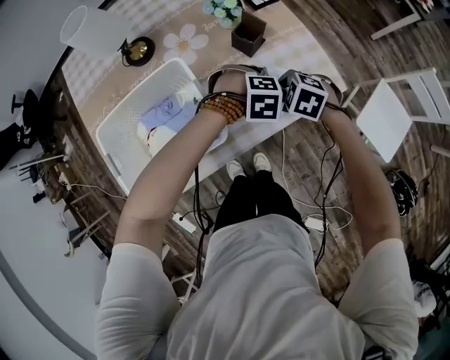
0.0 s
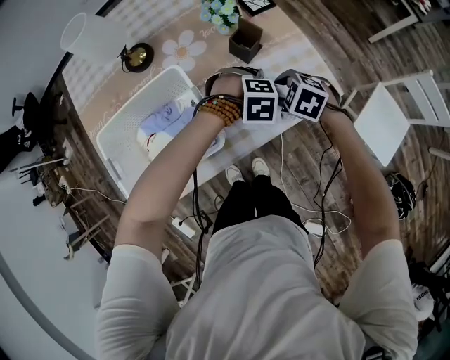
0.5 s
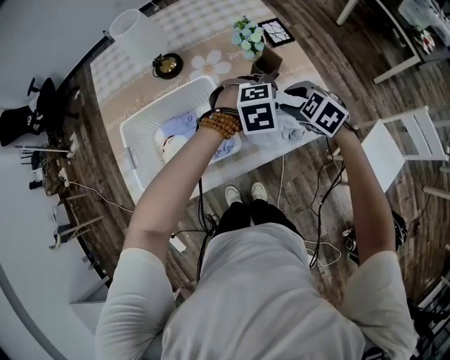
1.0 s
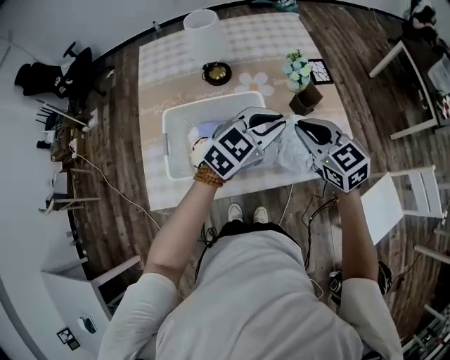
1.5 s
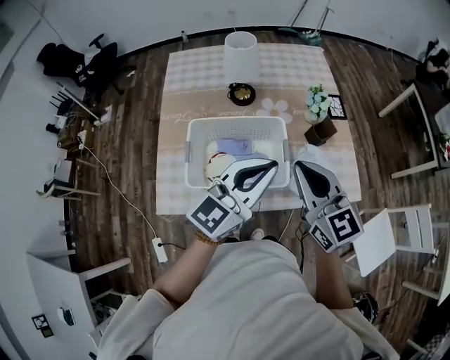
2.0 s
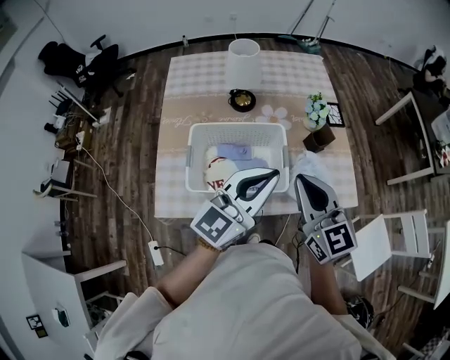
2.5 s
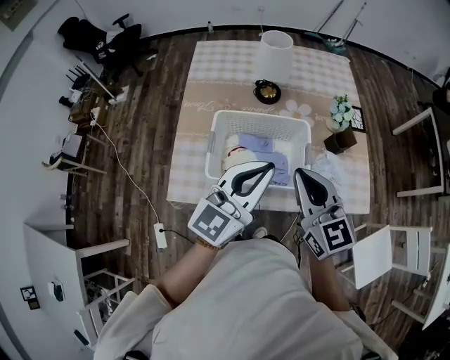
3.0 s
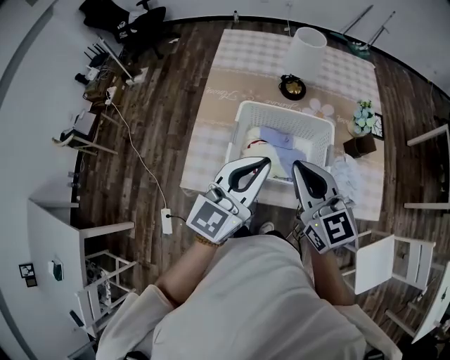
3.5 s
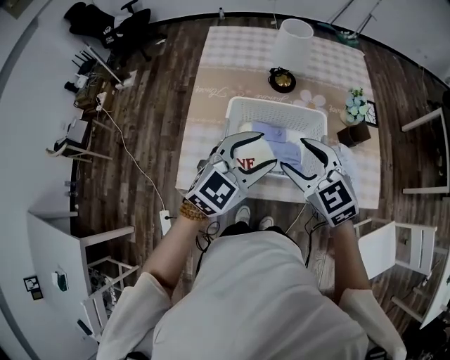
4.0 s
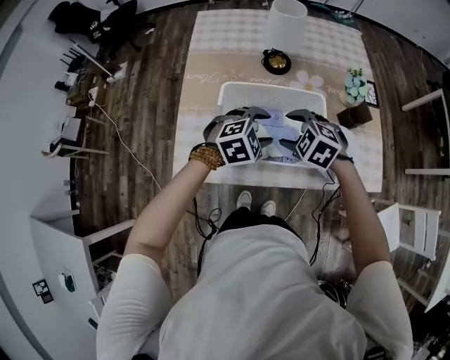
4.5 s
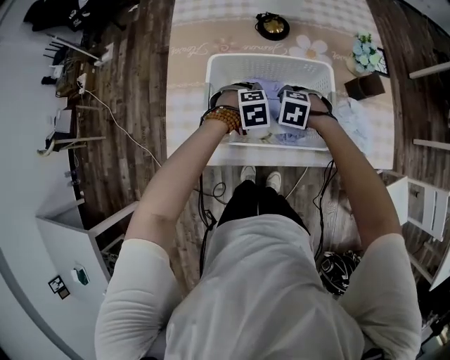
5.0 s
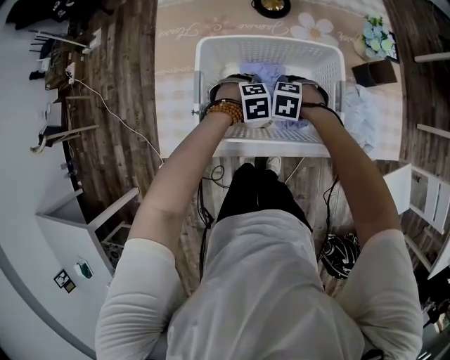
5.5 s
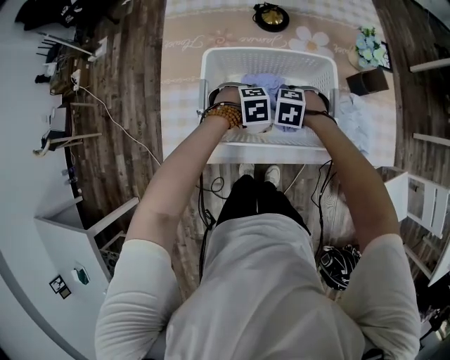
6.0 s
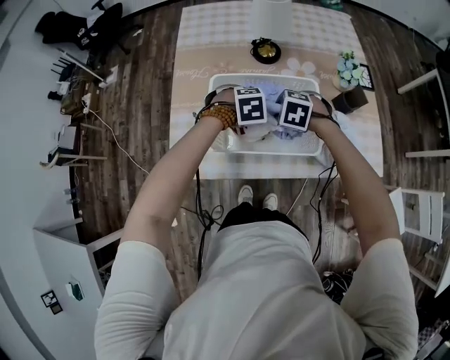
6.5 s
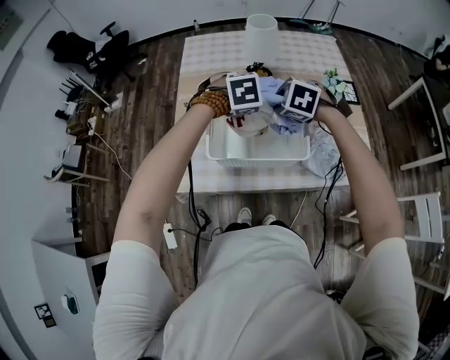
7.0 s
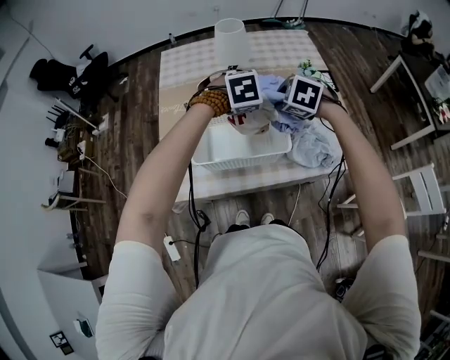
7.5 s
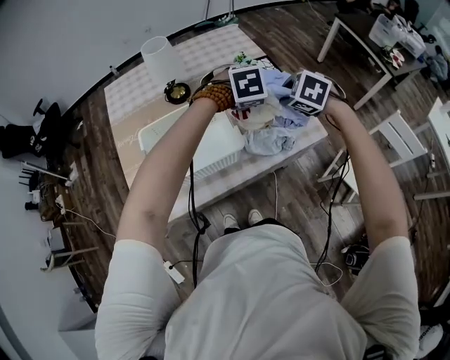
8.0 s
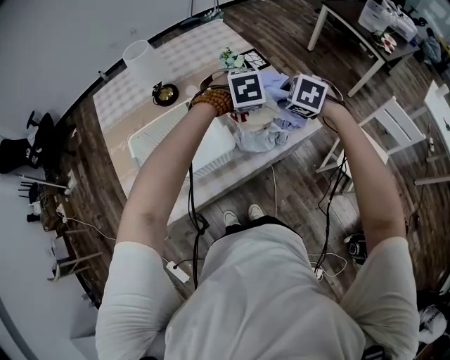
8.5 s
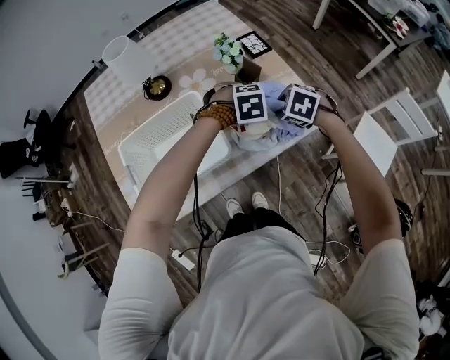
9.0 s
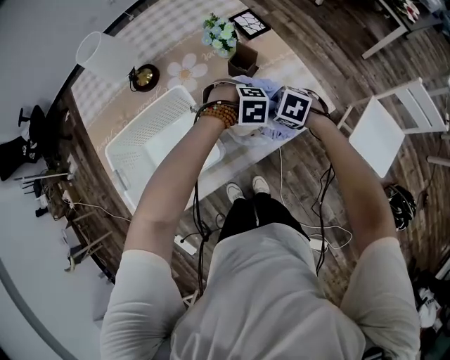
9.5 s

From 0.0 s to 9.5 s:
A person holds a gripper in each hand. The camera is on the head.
From 0.0 s to 2.0 s: Both grippers move upward, approximately 35 cm. The right gripper angles its fingers upward, by approximately 60 degrees. The left gripper points its fingers approximately 80 degrees further upward, and closes its fingers.
From 2.0 s to 4.0 s: The two grippers go roughly 15 cm to the left and downward. The left gripper turns by some 30 degrees, and opens. Meanwhile the right gripper changes its angle by about 30 degrees, and opens up.
From 4.0 s to 5.5 s: The grippers both shift downward by some 40 cm. The right gripper angles its fingers downward, by approximately 50 degrees, while the left gripper tilts its fingers some 60 degrees downward.
From 5.5 s to 7.5 s: Both grippers move upward, some 35 cm. The left gripper closes. Meanwhile the right gripper rotates about 30 degrees, and closes.
From 7.5 s to 9.5 s: The right gripper changes place by about 35 cm, and swivels roughly 30 degrees; the left gripper ends up some 35 cm from where it was, and rotates about 40 degrees.

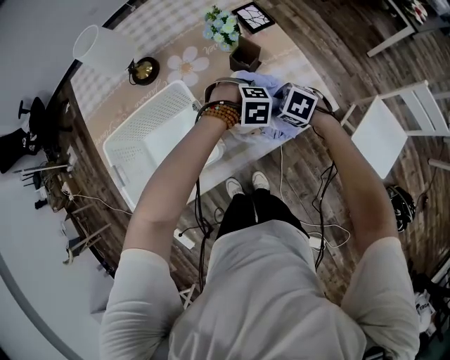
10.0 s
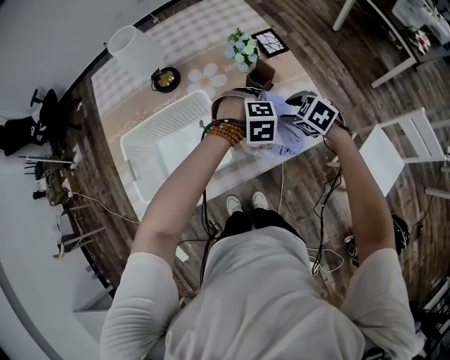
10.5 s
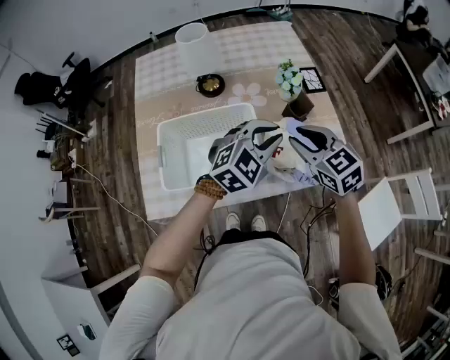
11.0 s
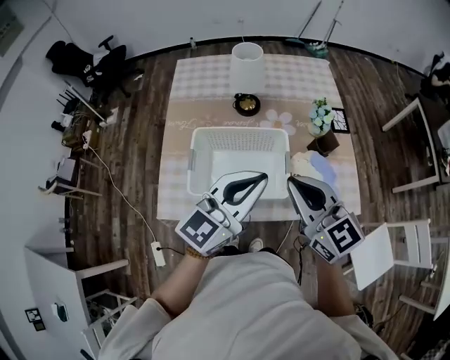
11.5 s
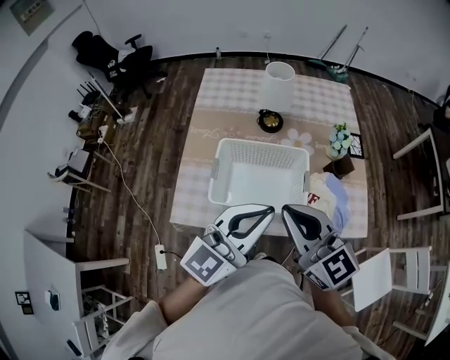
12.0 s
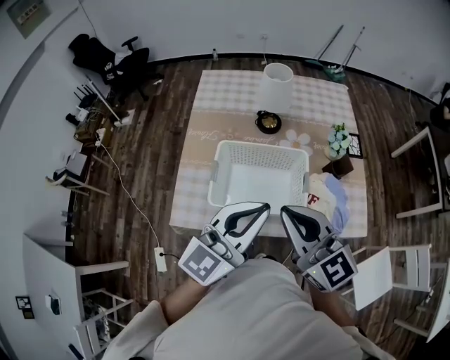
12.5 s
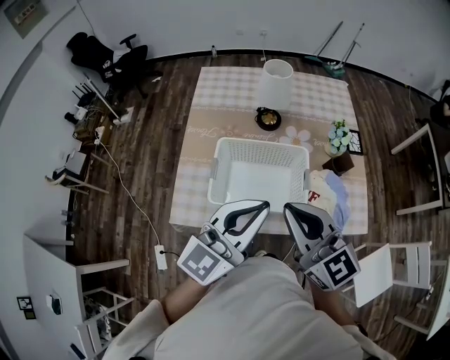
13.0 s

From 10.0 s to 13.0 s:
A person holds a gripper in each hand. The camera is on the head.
From 10.0 s to 11.5 s: Both grippers travel together upward, some 40 cm. The left gripper points its fingers roughly 90 degrees further upward, and closes; the right gripper angles its fingers upward, by some 60 degrees, and closes.
From 11.5 s to 13.0 s: The two grippers go about 5 cm to the left.

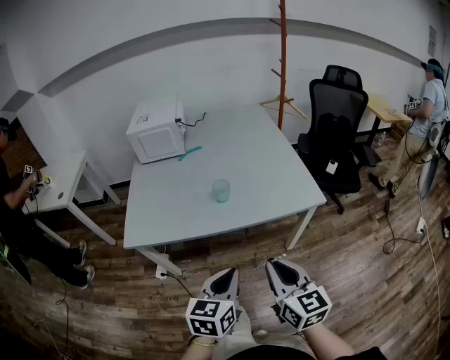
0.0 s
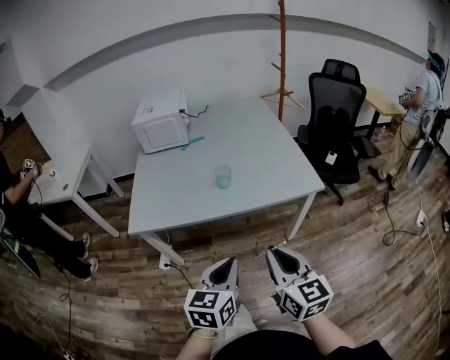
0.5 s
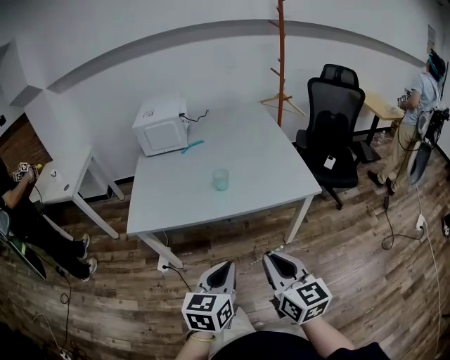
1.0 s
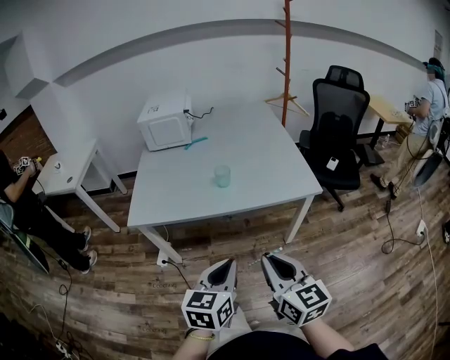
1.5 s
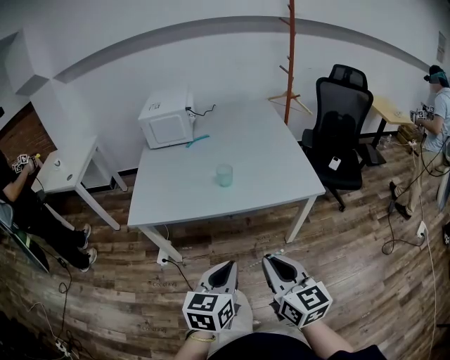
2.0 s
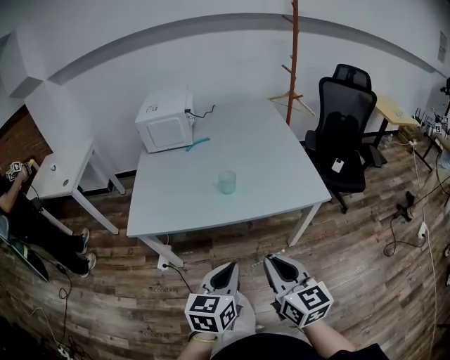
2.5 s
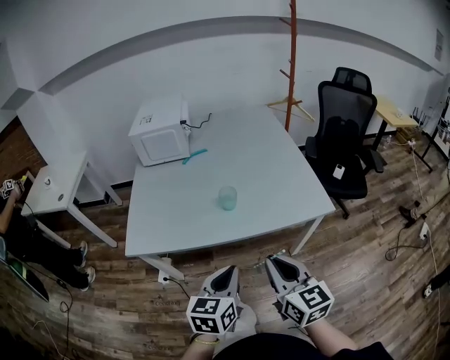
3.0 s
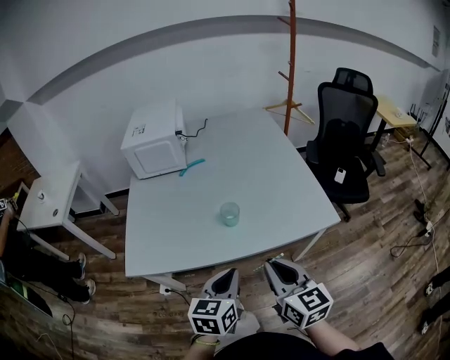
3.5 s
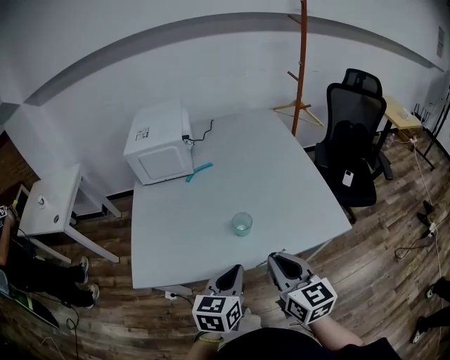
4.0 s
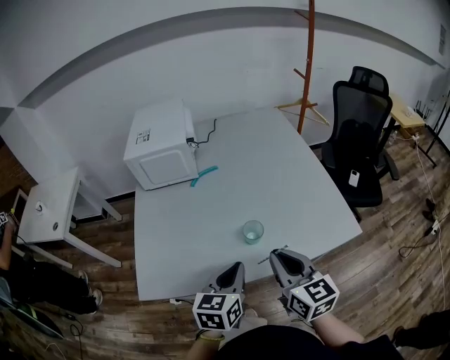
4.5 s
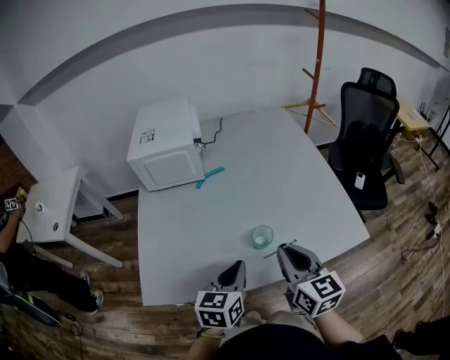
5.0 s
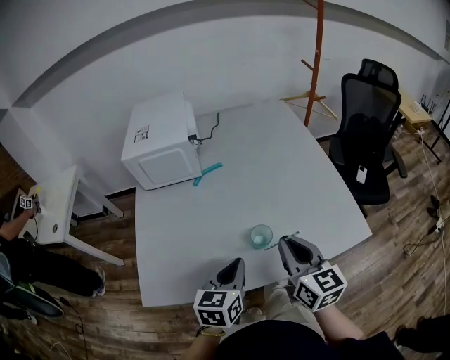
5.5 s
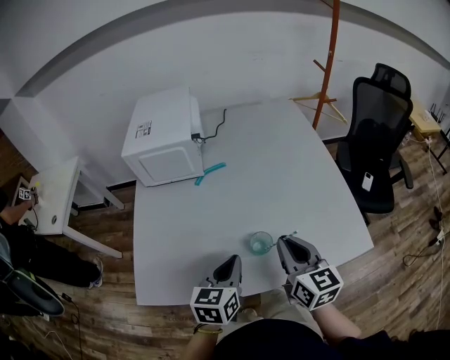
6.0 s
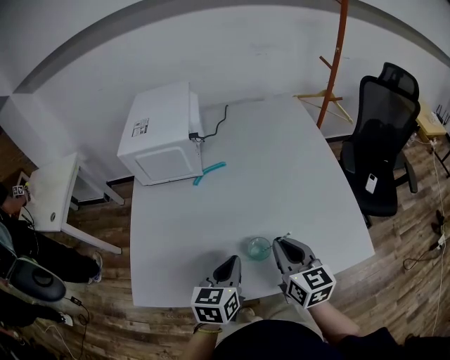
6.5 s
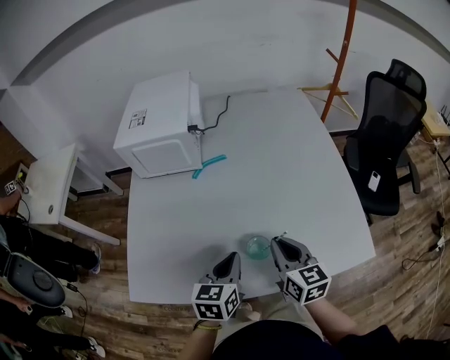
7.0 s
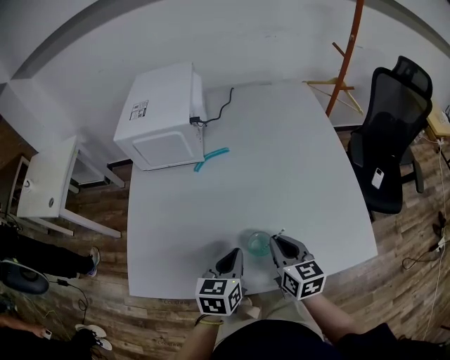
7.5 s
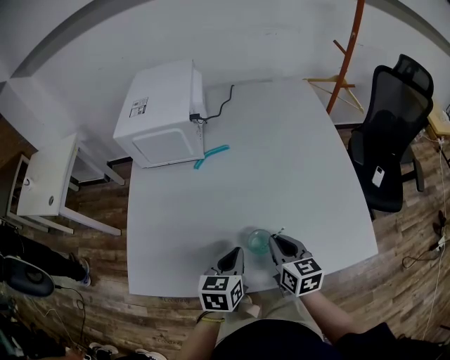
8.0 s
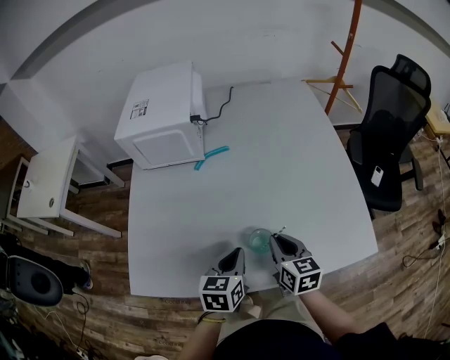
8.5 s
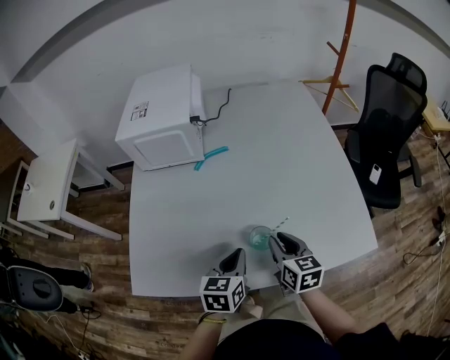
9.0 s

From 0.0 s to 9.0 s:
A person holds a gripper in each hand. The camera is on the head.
From 0.0 s to 2.0 s: The two grippers go roughly 5 cm backward.
From 2.0 s to 4.5 s: Both grippers travel together forward, some 30 cm.
From 4.5 s to 7.0 s: The two grippers go approximately 15 cm forward and downward.
From 7.0 s to 9.0 s: The right gripper travels downward by about 5 cm.

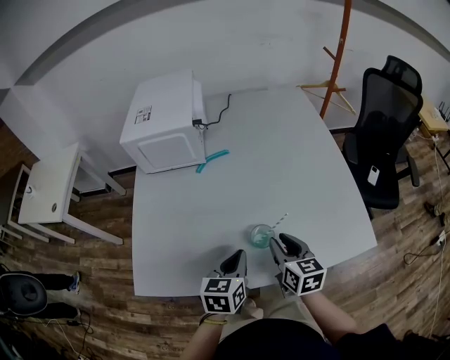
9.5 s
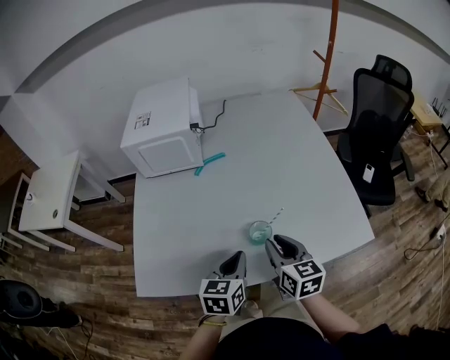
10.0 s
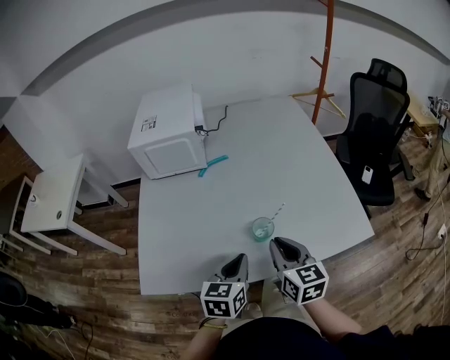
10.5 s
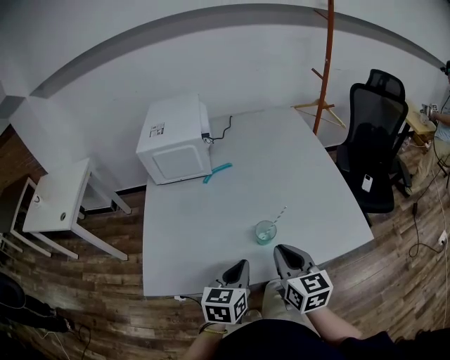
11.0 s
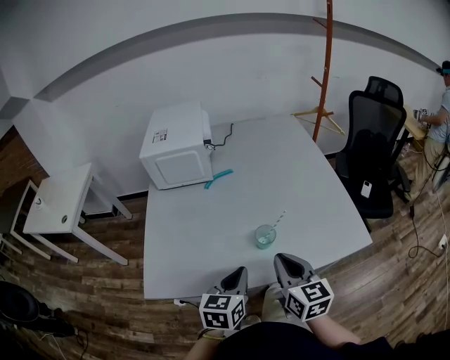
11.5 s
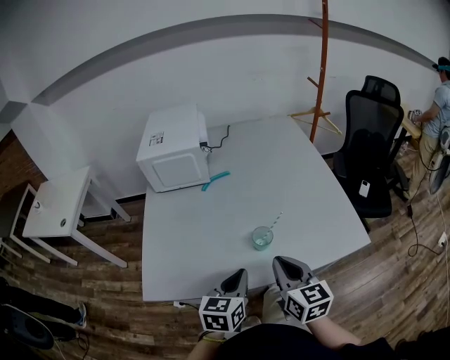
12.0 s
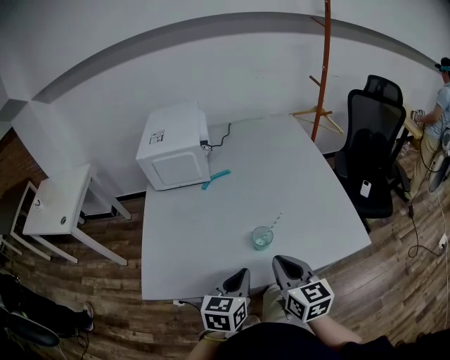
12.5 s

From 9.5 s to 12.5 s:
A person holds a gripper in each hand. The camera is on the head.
From 9.5 s to 11.0 s: The right gripper heads upward and backward, covering roughly 10 cm, while the left gripper travels backward by about 5 cm.
From 11.0 s to 12.5 s: The grippers move only a little.

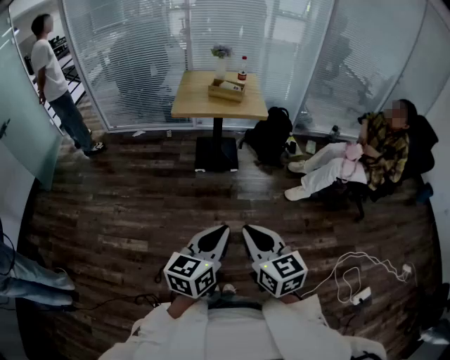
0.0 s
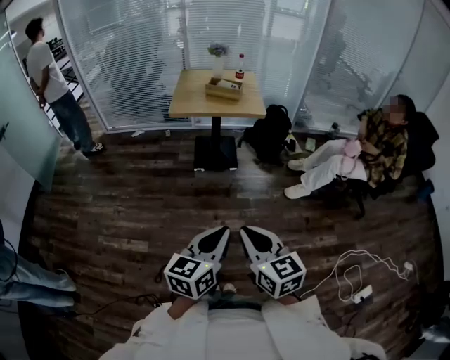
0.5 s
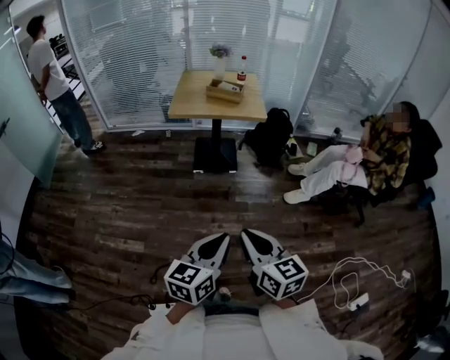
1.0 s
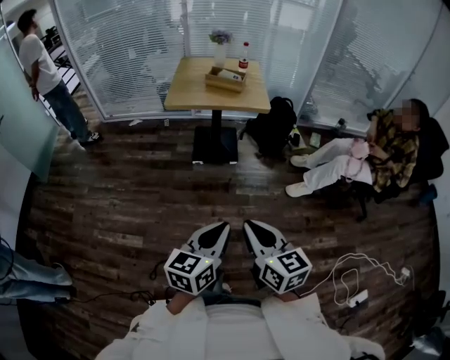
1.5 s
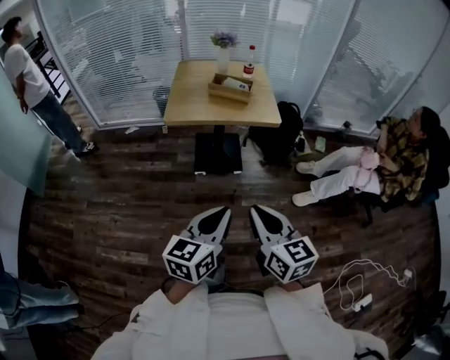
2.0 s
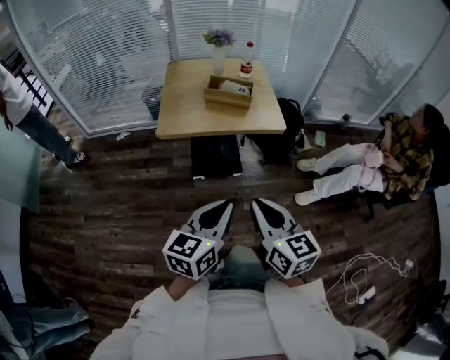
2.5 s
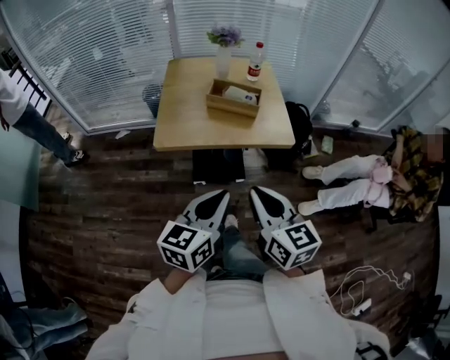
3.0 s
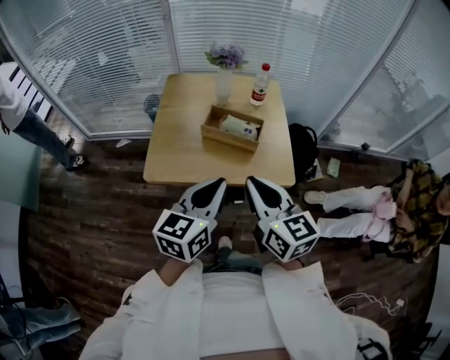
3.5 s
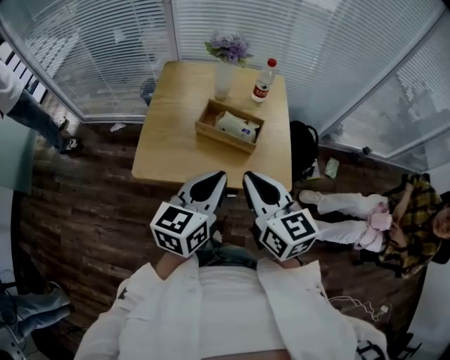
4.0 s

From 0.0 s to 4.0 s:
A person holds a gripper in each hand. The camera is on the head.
From 0.0 s to 2.0 s: The two grippers go some 25 cm forward.
From 2.0 s to 4.0 s: The two grippers travel together, forward, approximately 40 cm.
